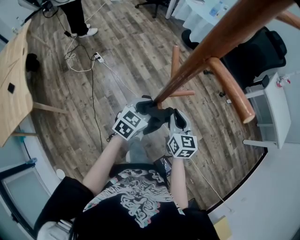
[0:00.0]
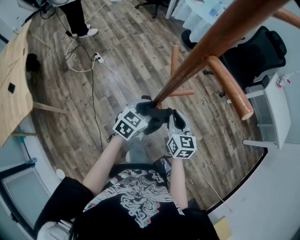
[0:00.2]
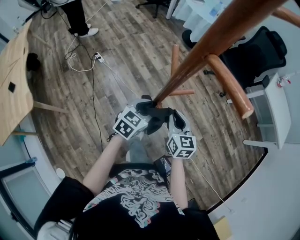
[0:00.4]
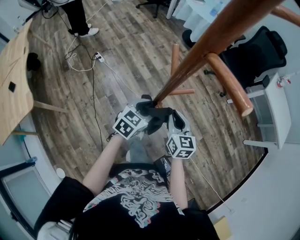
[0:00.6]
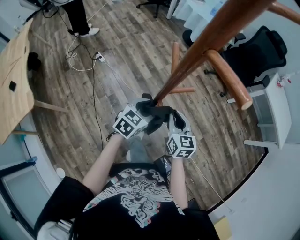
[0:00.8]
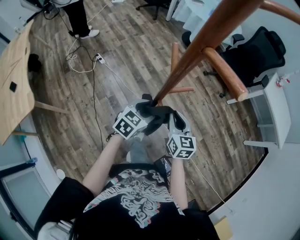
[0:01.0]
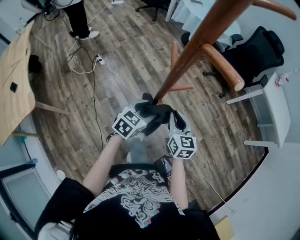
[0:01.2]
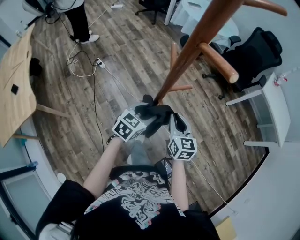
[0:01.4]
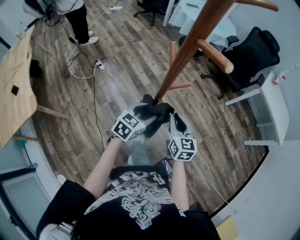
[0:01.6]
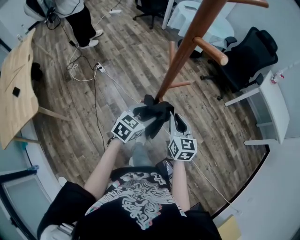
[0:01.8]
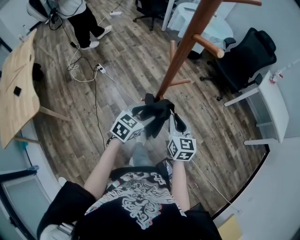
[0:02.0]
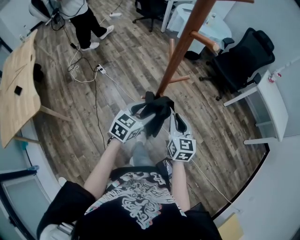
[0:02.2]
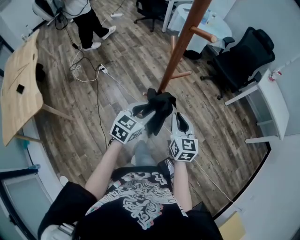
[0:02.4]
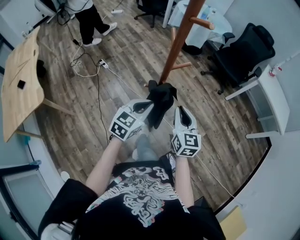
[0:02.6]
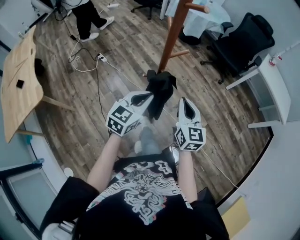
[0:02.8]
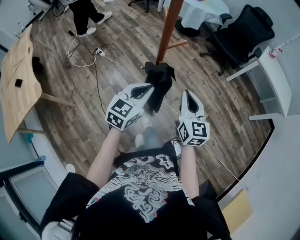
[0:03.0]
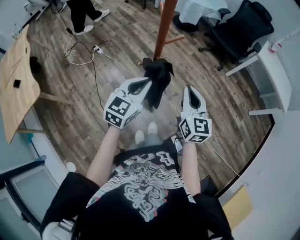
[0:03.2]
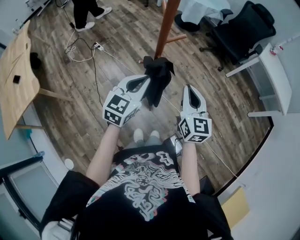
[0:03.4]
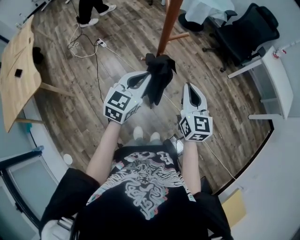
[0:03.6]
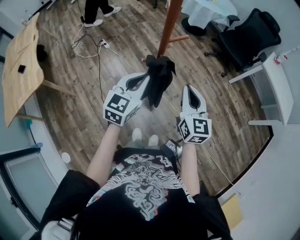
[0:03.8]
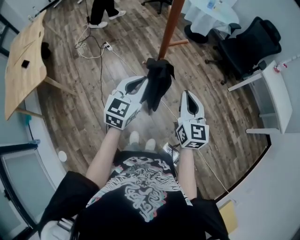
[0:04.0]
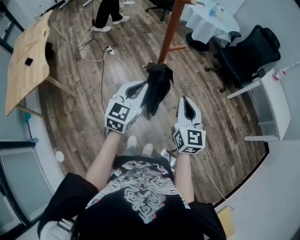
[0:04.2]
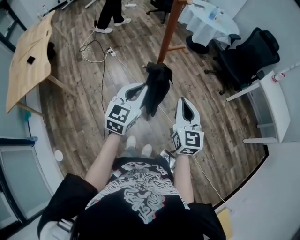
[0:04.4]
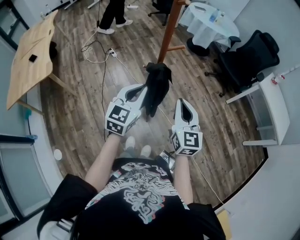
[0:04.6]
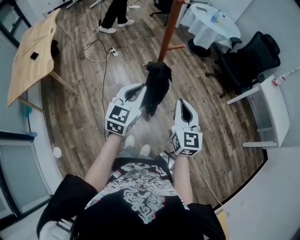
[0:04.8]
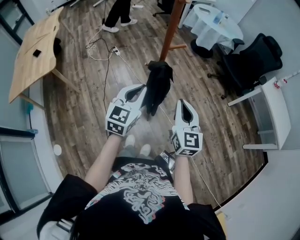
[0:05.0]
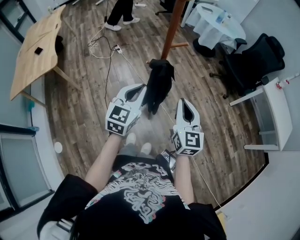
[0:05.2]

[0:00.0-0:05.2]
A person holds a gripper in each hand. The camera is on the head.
0:00.0 to 0:01.8: The two grippers go about 5 cm backward. The left gripper opens its fingers.
0:01.8 to 0:03.4: The right gripper goes roughly 15 cm backward, upward and to the right. Meanwhile the left gripper heads upward and backward, covering roughly 15 cm, rotates approximately 20 degrees, and closes.
0:03.4 to 0:05.2: The grippers both shift backward by roughly 10 cm. The left gripper changes its angle by approximately 20 degrees.

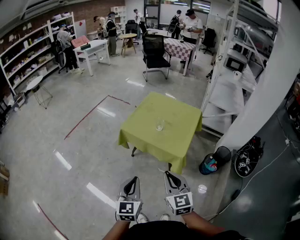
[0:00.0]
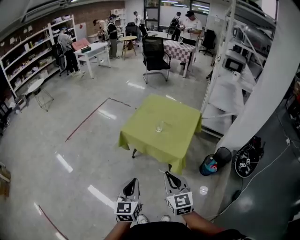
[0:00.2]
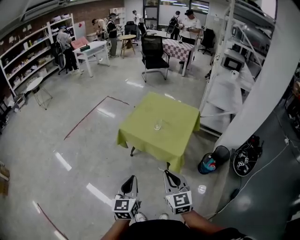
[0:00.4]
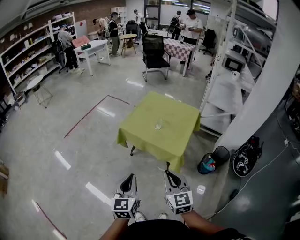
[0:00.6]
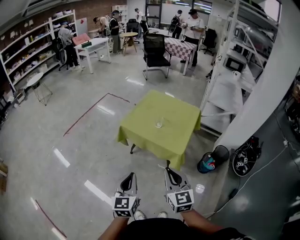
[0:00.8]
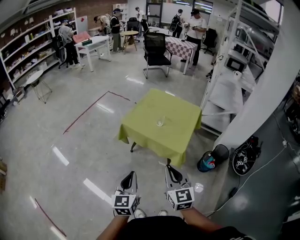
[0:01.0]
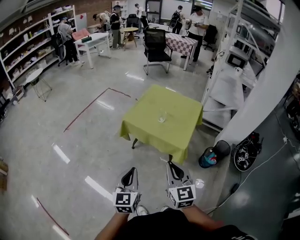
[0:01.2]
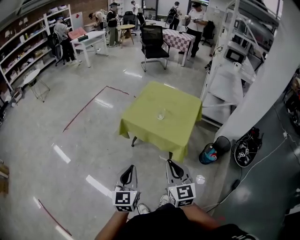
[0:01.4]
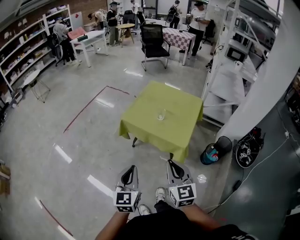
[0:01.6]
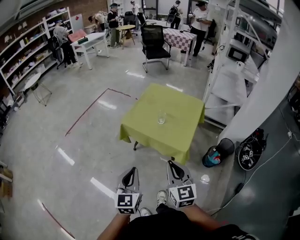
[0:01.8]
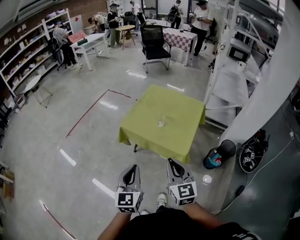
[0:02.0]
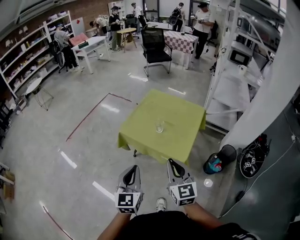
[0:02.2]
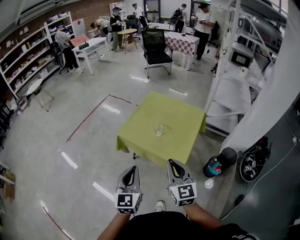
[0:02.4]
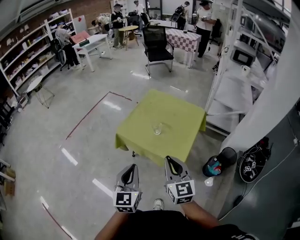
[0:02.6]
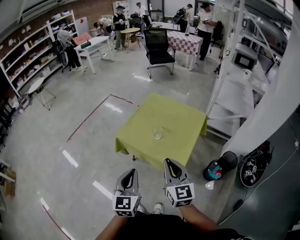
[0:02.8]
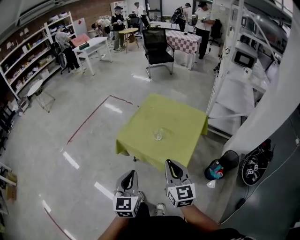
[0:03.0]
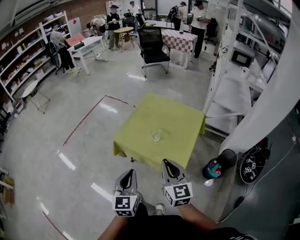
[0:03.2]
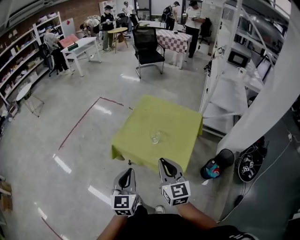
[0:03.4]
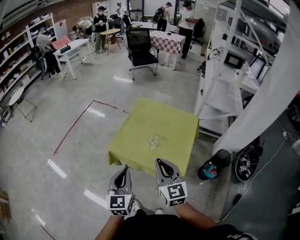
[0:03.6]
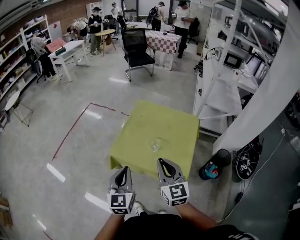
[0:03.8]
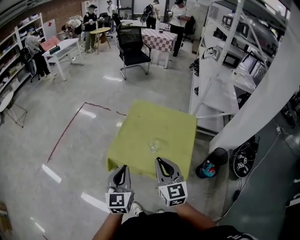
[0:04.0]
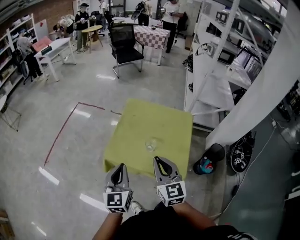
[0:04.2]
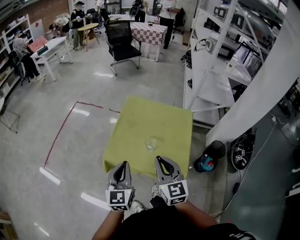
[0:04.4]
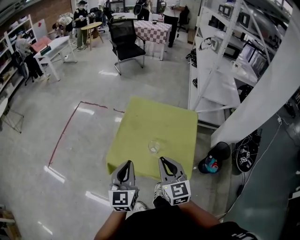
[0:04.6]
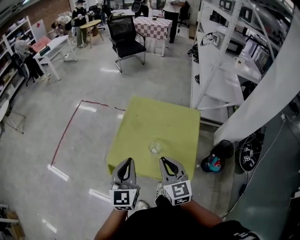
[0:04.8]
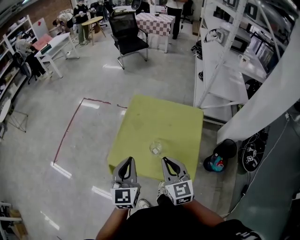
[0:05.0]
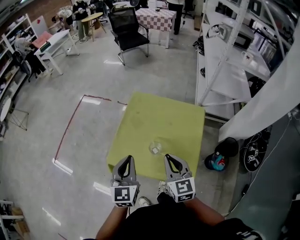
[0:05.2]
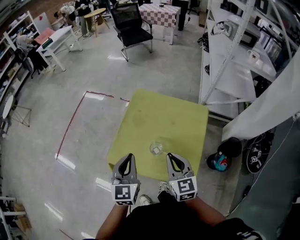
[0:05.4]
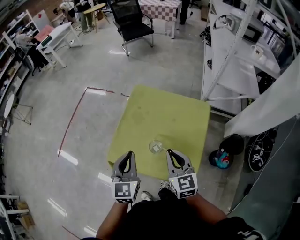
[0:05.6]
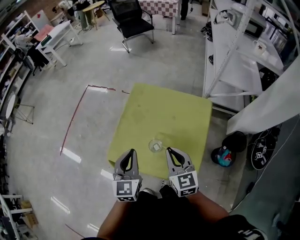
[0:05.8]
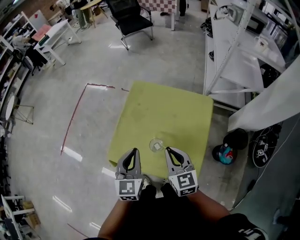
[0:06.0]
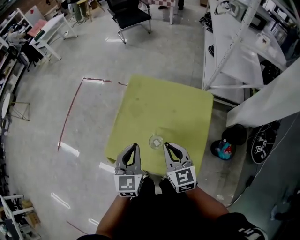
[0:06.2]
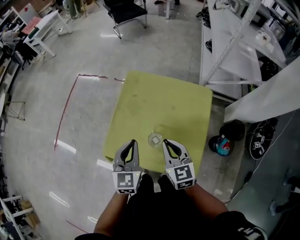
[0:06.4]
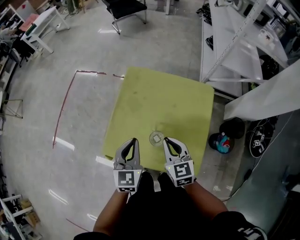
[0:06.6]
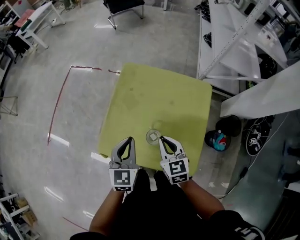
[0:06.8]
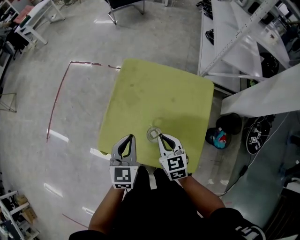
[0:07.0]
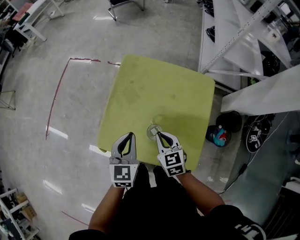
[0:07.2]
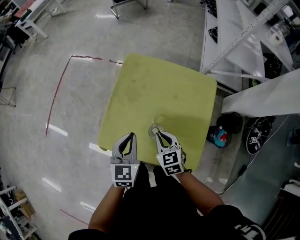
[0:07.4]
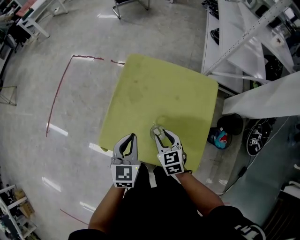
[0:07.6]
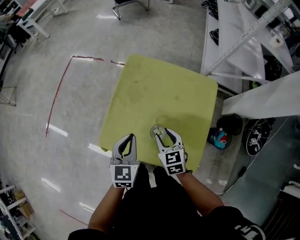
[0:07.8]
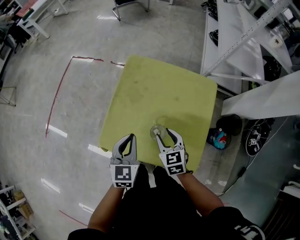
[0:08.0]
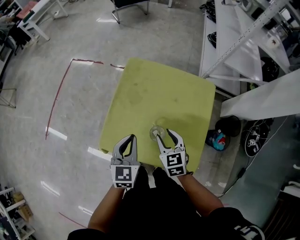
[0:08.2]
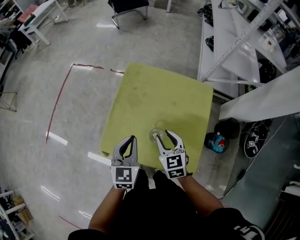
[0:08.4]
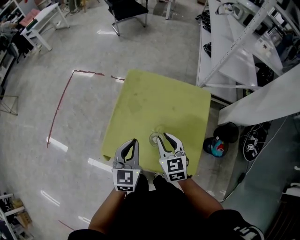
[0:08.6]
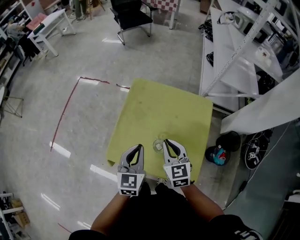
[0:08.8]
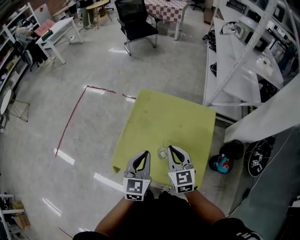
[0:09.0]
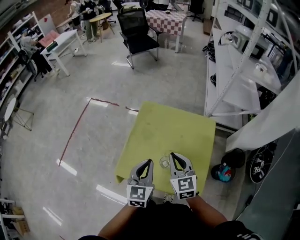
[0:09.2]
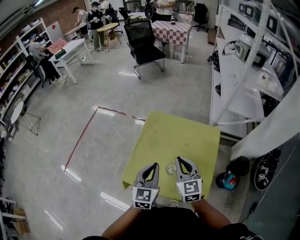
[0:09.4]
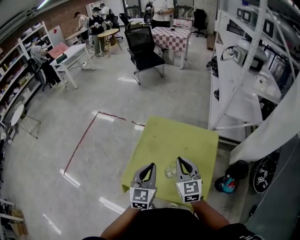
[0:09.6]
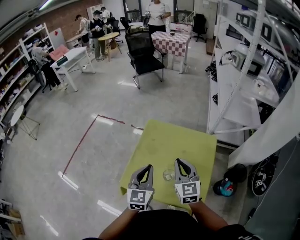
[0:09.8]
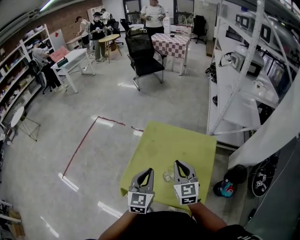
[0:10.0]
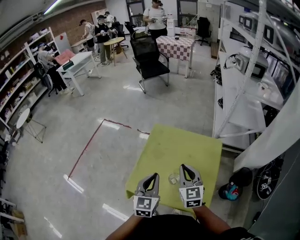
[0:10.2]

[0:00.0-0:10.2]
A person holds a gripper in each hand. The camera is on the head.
0:00.0 to 0:01.4: The grippers move only a little.
0:01.4 to 0:03.0: Both grippers travel together forward and to the right, some 20 cm.
0:03.0 to 0:04.4: The right gripper goes some 15 cm forward and to the left. Meanwhile the left gripper is displaced forward by about 20 cm.
0:04.4 to 0:05.8: The right gripper shifts approximately 20 cm forward, to the right and downward. The left gripper travels forward and to the right by roughly 15 cm.
0:05.8 to 0:07.2: The right gripper moves downward, roughly 15 cm. The left gripper is displaced downward by about 10 cm.
0:07.2 to 0:08.8: The right gripper is displaced upward by some 10 cm, and opens, then closes again.
0:08.8 to 0:10.2: Both grippers travel together upward, some 5 cm.

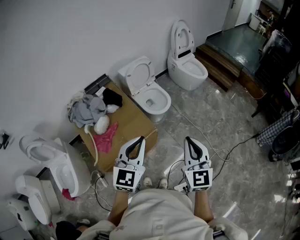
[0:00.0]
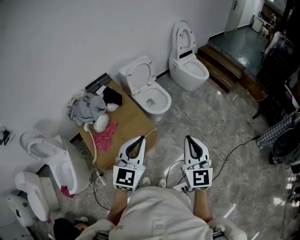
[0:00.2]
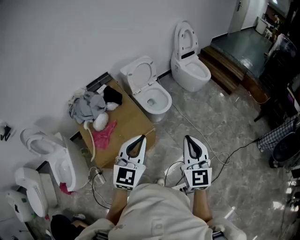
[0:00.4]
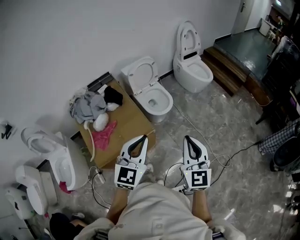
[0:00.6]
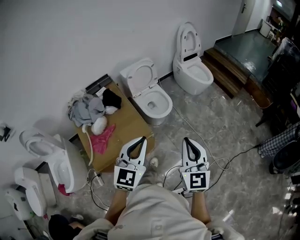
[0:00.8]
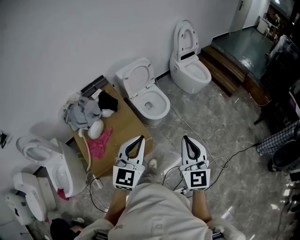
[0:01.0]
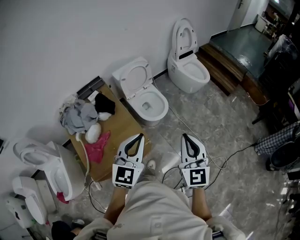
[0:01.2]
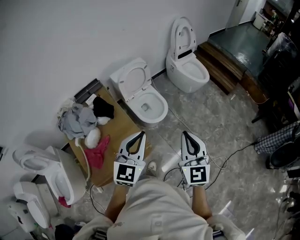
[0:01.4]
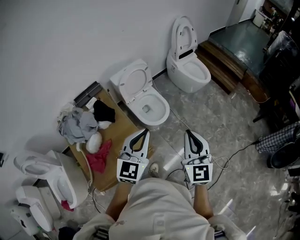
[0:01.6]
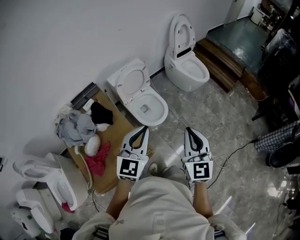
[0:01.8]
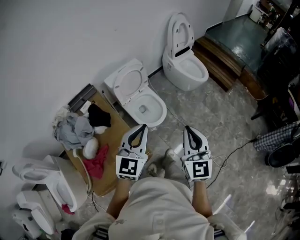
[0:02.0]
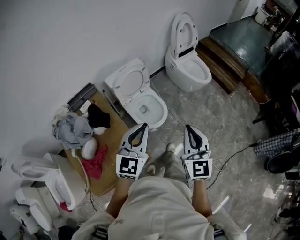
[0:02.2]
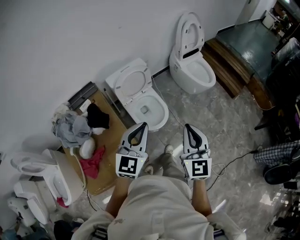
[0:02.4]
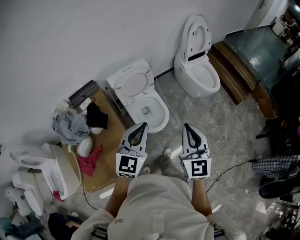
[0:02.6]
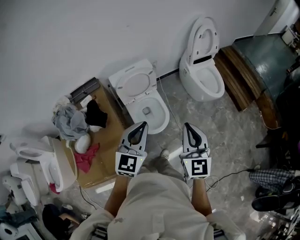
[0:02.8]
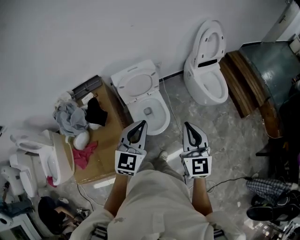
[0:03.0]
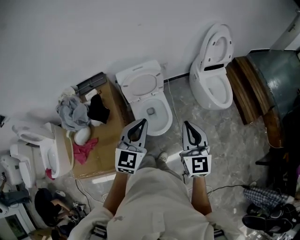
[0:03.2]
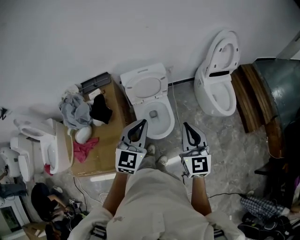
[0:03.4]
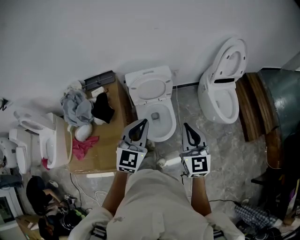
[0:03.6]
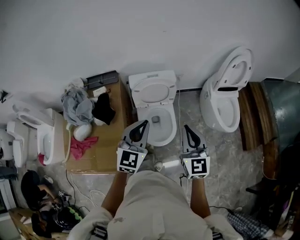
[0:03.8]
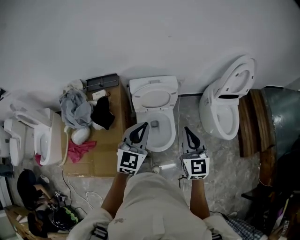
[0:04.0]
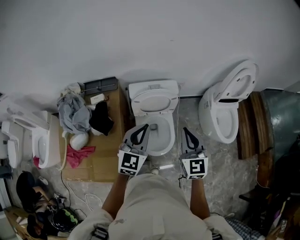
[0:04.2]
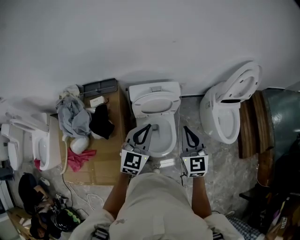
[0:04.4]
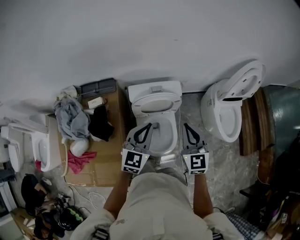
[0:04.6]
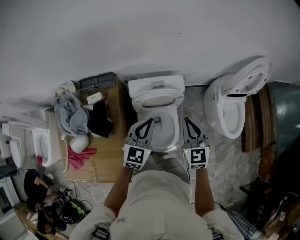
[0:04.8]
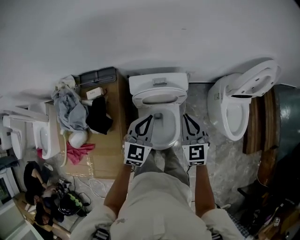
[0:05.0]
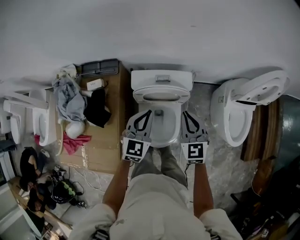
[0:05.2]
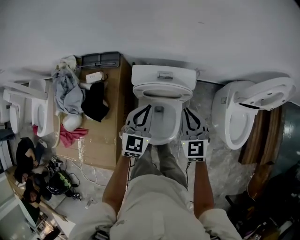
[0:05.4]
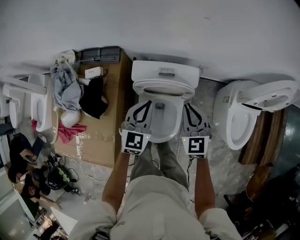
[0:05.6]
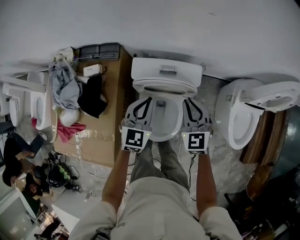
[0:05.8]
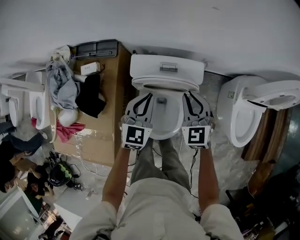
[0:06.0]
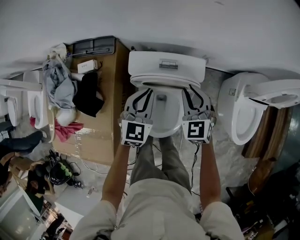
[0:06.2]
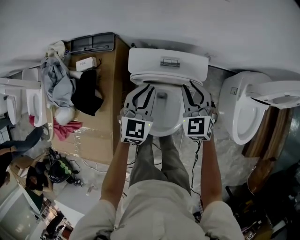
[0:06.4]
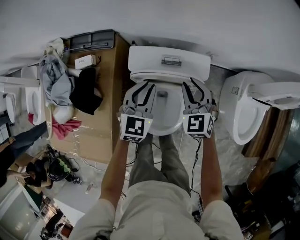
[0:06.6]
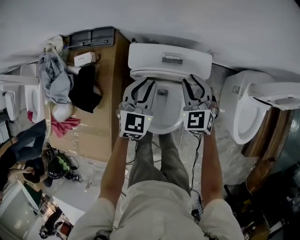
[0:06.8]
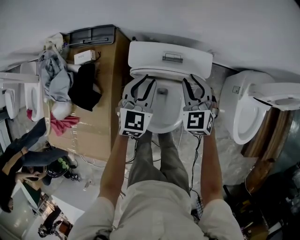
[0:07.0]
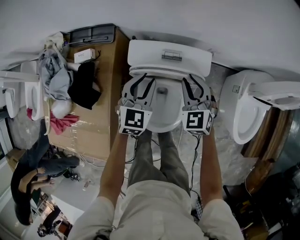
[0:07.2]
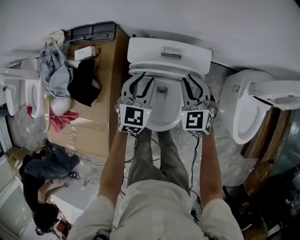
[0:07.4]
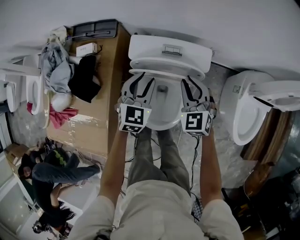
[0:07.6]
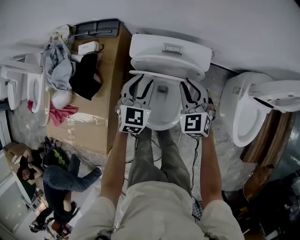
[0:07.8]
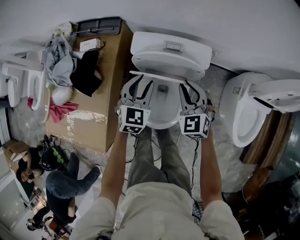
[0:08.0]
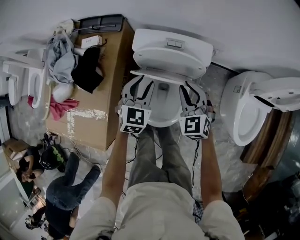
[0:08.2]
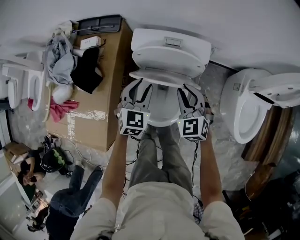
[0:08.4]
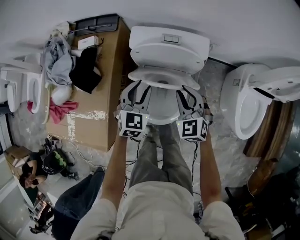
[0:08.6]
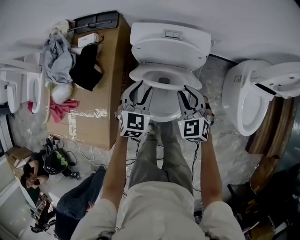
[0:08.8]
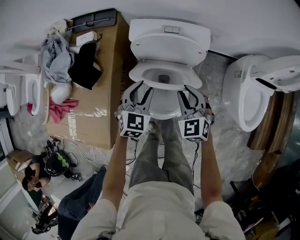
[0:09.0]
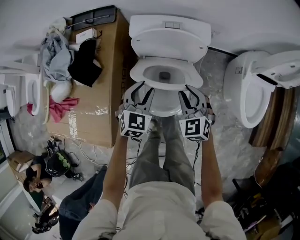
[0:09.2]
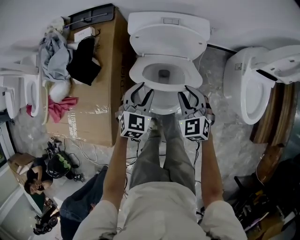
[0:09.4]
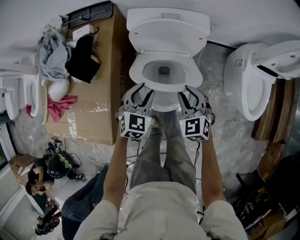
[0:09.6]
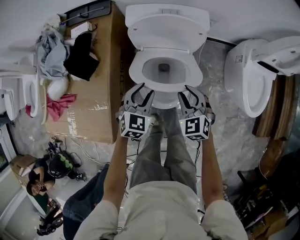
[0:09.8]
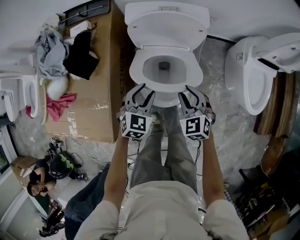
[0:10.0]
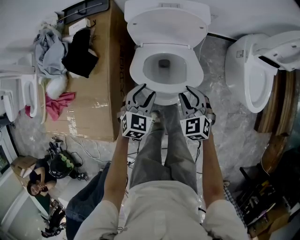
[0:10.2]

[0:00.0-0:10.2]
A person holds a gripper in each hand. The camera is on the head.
0:00.0 to 0:01.4: The grippers both shift forward by about 20 cm.
0:01.4 to 0:03.0: The grippers both shift forward by some 30 cm.
0:03.0 to 0:04.4: Both grippers travel together forward, approximately 20 cm.
0:04.4 to 0:05.8: The right gripper heads forward and downward, covering roughly 25 cm, and swivels some 20 degrees. Meanwhile the left gripper heads downward and forward, covering some 20 cm.
0:05.8 to 0:07.2: The grippers both shift downward by some 10 cm. The left gripper opens.
0:07.2 to 0:08.8: Both grippers travel together backward, some 15 cm.
0:08.8 to 0:10.2: The grippers both shift backward and downward by about 15 cm.
